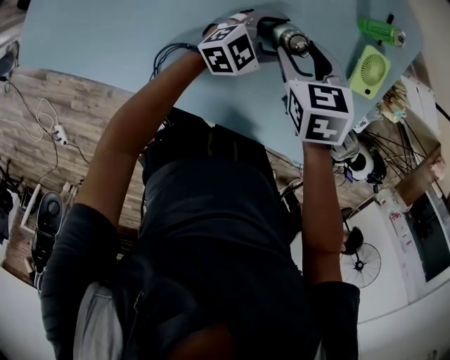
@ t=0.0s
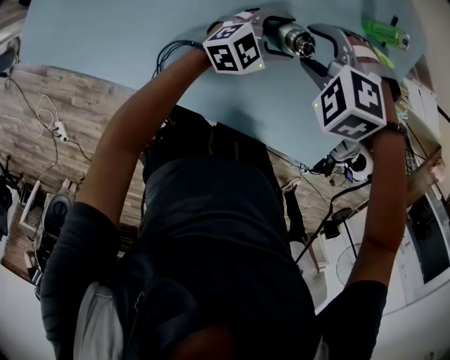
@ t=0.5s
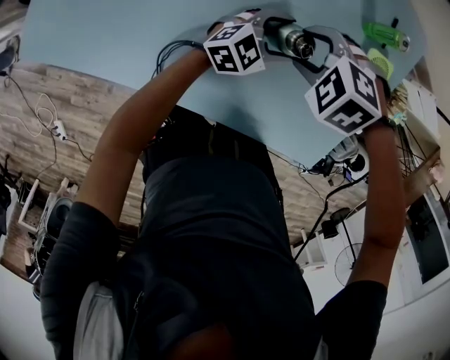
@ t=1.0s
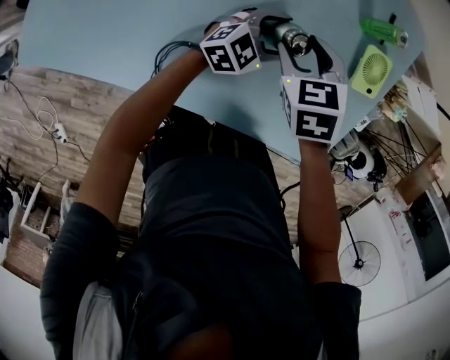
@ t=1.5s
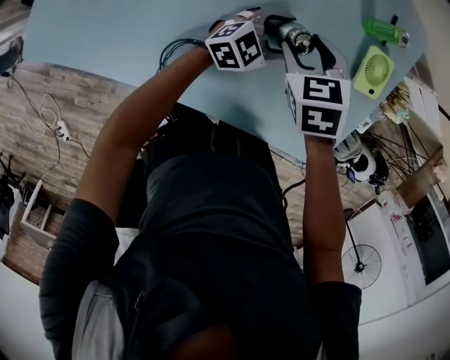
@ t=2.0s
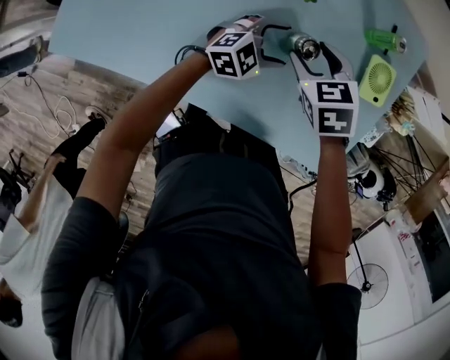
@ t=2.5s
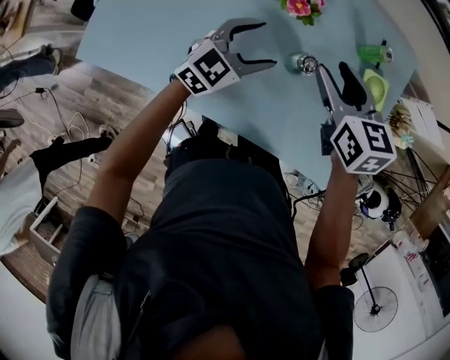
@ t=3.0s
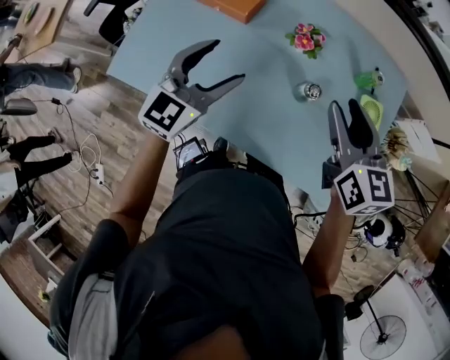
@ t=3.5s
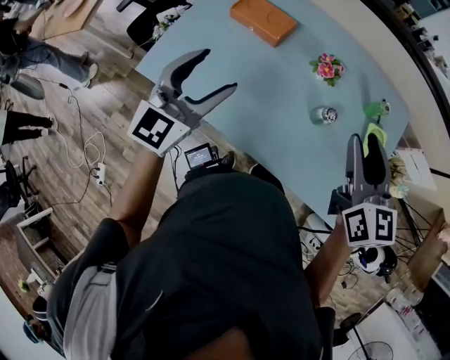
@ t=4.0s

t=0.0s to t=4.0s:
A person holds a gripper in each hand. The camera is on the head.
t=2.0s to t=4.0s: The right gripper moves upward, approximately 35 cm, and angles its fingers upward, by roughly 50 degrees, while the left gripper heads upward, to the left and backward, covering roughly 50 cm, and swivels about 50 degrees.

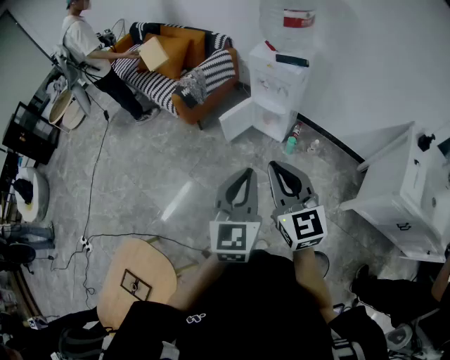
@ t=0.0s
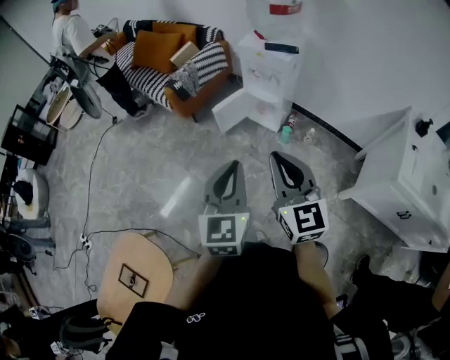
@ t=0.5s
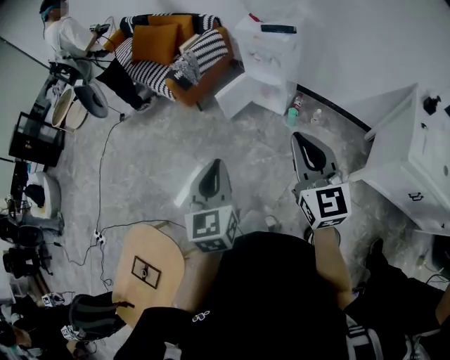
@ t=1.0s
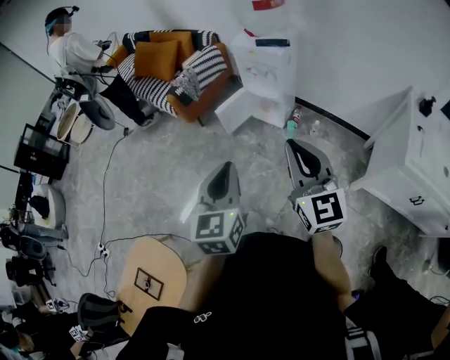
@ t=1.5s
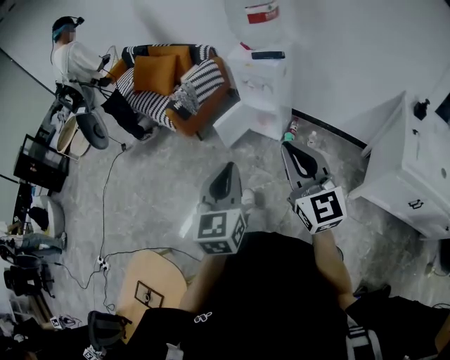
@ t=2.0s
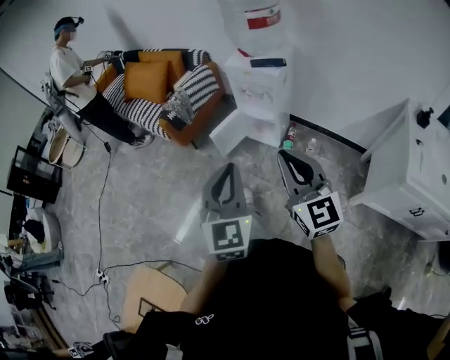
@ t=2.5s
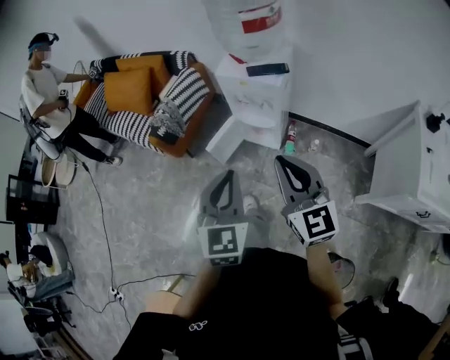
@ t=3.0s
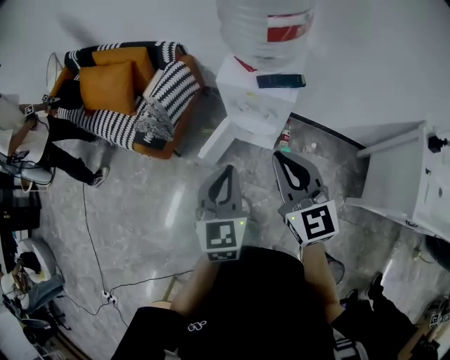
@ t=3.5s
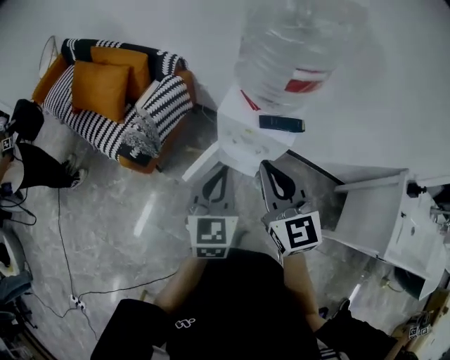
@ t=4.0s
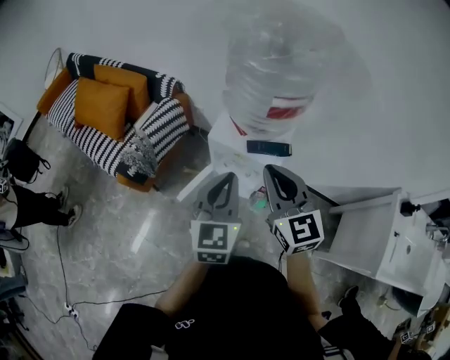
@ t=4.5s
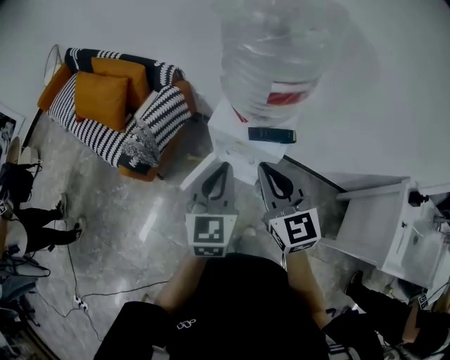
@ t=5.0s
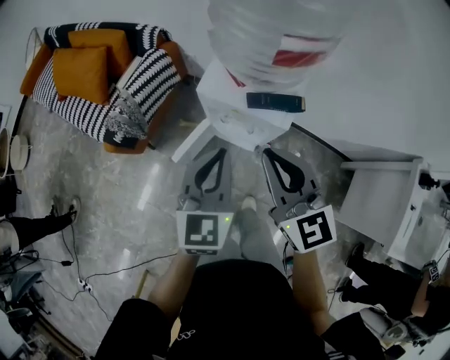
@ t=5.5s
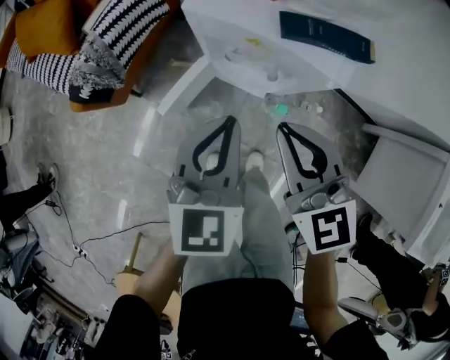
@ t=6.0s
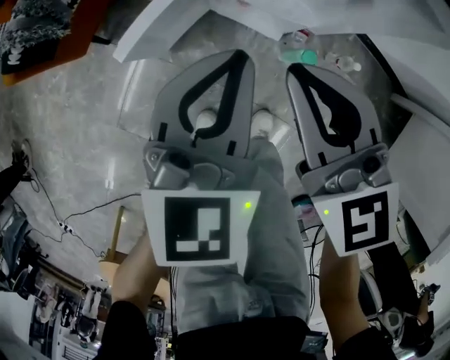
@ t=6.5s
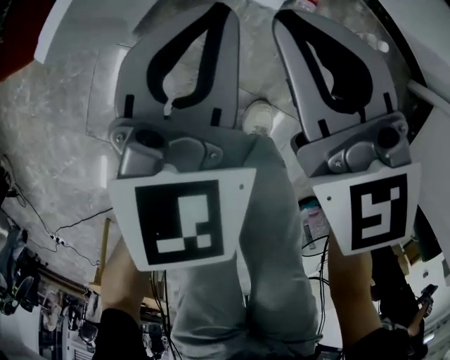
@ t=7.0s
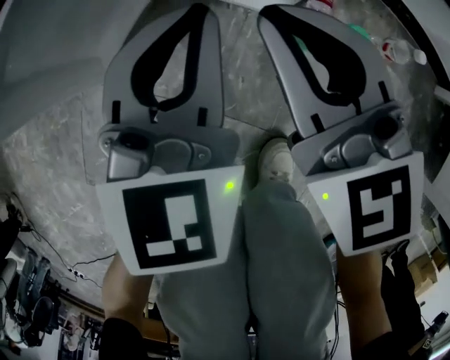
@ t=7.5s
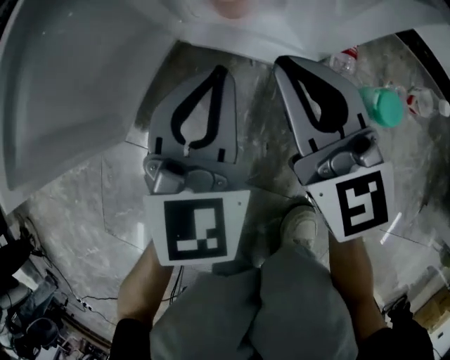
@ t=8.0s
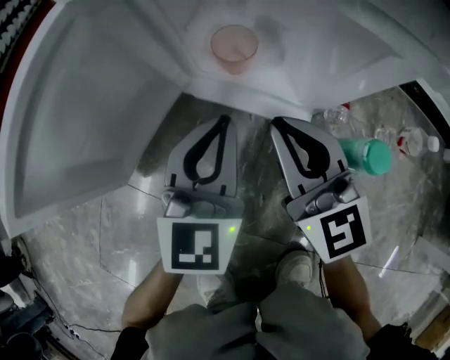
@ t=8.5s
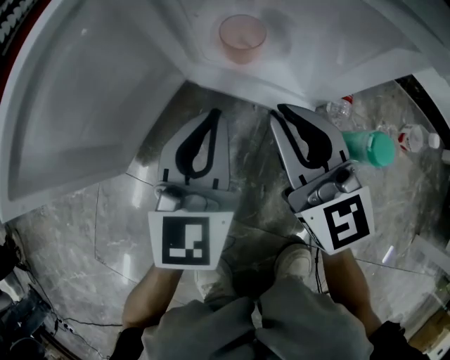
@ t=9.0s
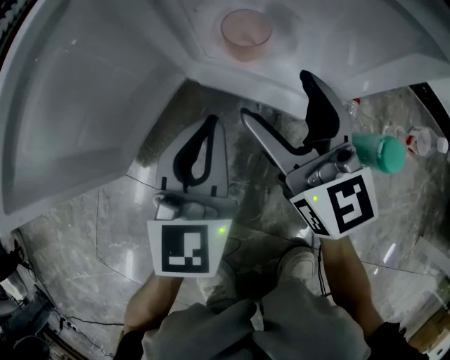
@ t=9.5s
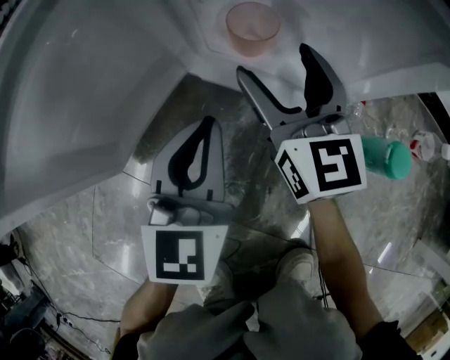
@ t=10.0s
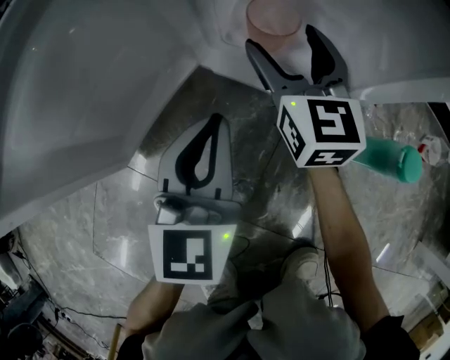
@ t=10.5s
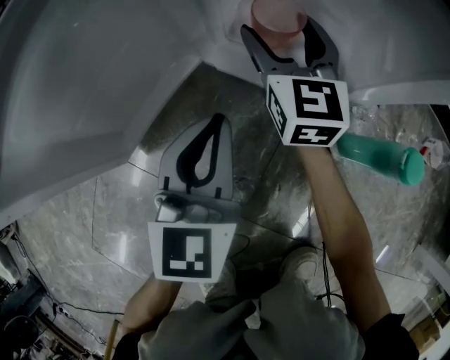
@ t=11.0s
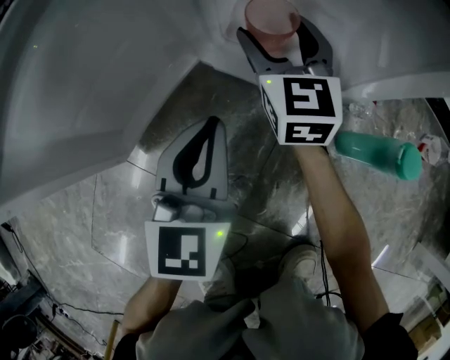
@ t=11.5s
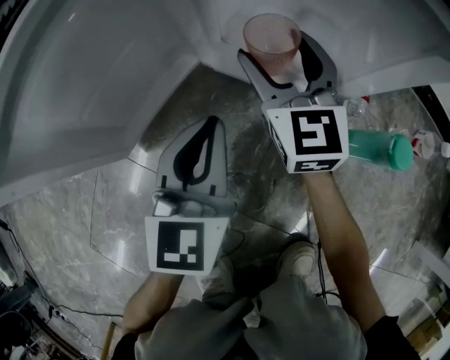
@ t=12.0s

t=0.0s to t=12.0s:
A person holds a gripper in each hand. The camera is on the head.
t=0.0s to t=2.0s: The right gripper shifts about 10 cm to the right.
t=2.0s to t=4.0s: The pair of grippers is taken forward, approximately 50 cm.
t=4.0s to t=6.0s: Both grippers move downward, about 20 cm.
t=6.0s to t=8.0s: The grippers both shift downward by some 60 cm.
t=8.0s to t=10.0s: The left gripper moves approximately 5 cm; the right gripper moves forward and downward, about 10 cm, and opens its fingers.

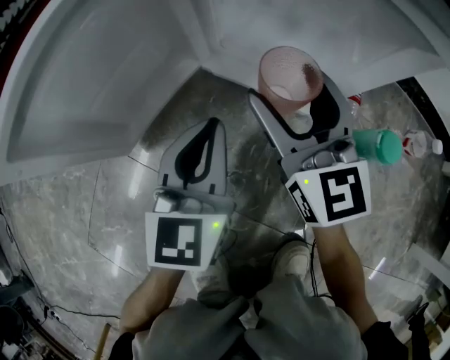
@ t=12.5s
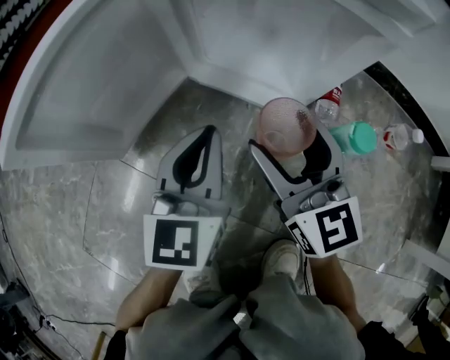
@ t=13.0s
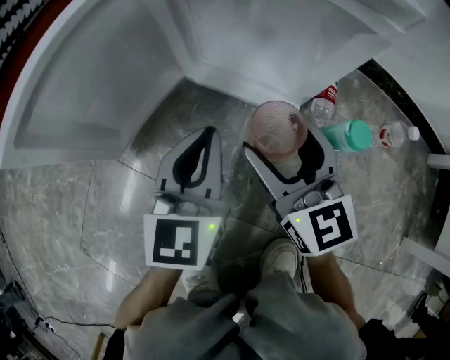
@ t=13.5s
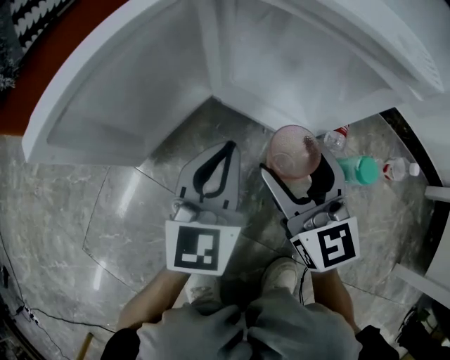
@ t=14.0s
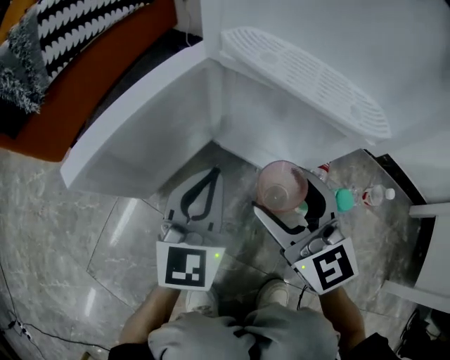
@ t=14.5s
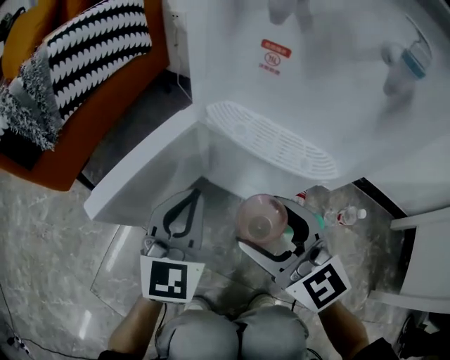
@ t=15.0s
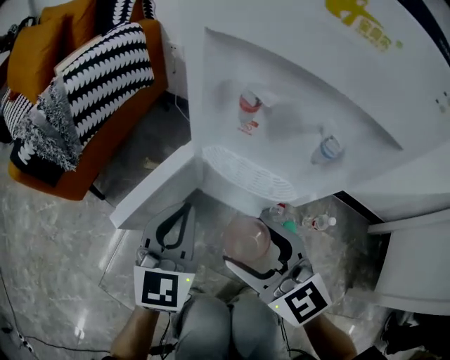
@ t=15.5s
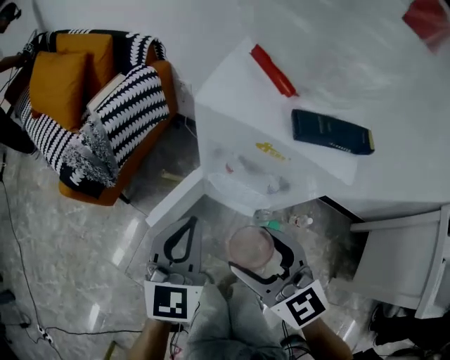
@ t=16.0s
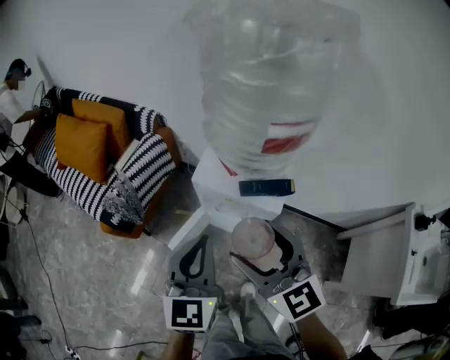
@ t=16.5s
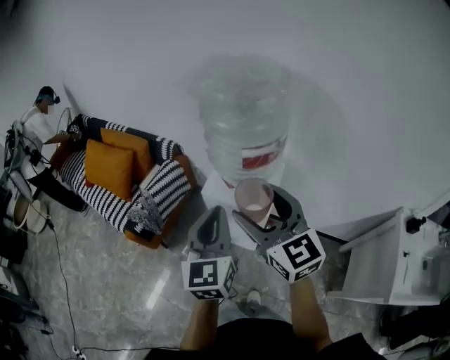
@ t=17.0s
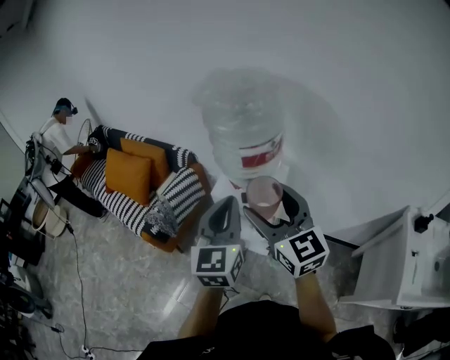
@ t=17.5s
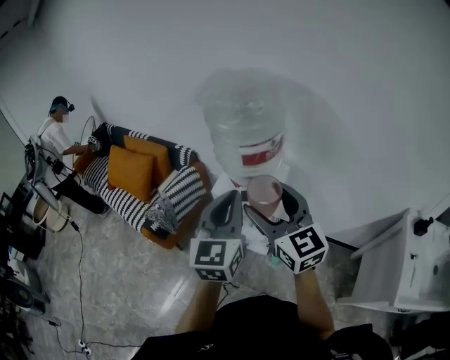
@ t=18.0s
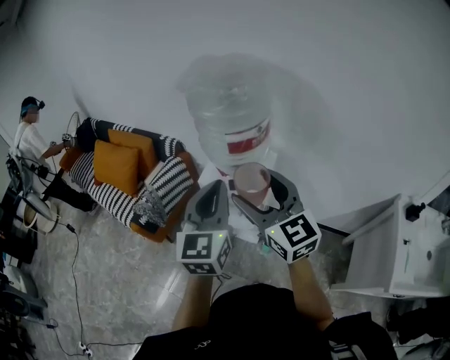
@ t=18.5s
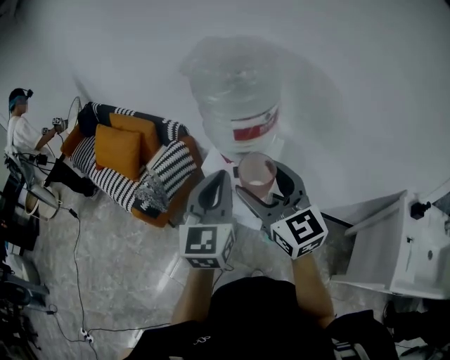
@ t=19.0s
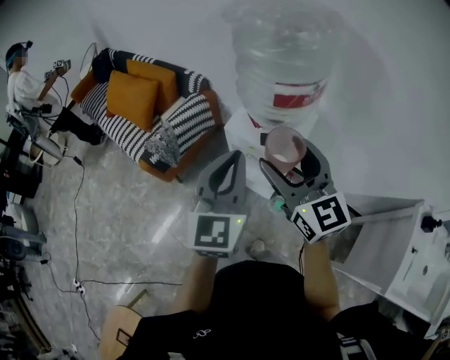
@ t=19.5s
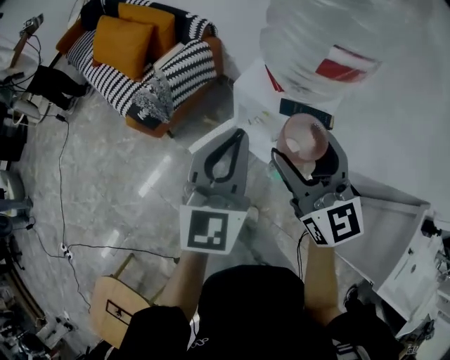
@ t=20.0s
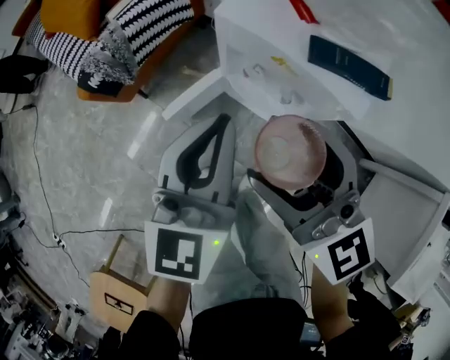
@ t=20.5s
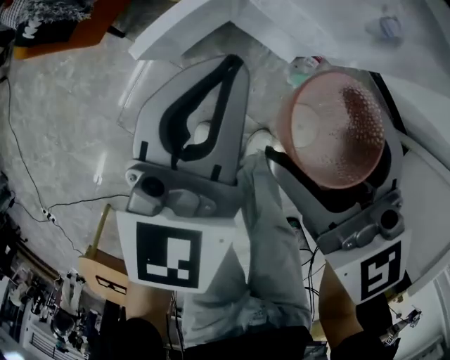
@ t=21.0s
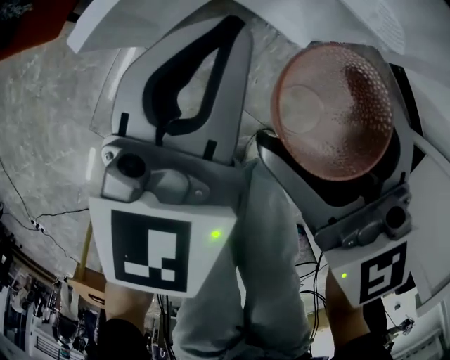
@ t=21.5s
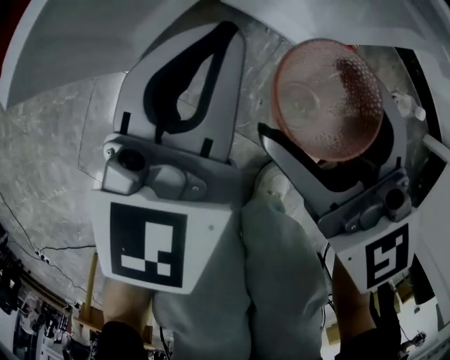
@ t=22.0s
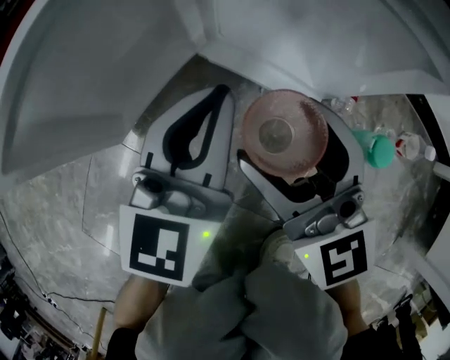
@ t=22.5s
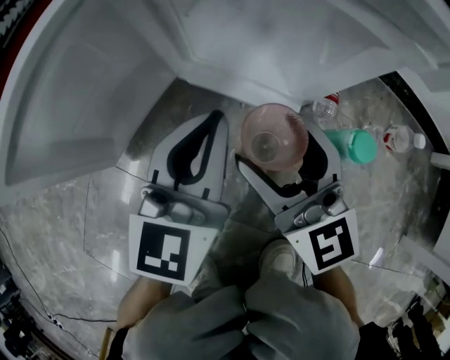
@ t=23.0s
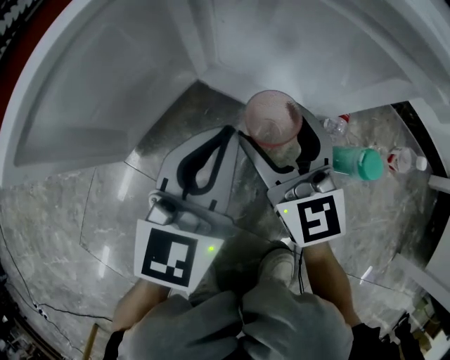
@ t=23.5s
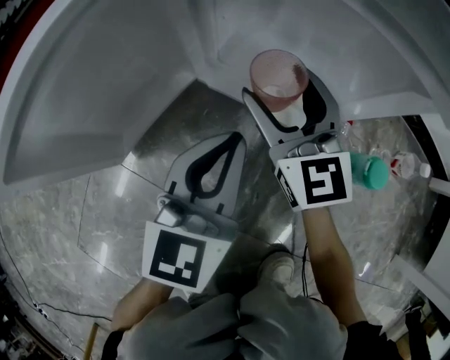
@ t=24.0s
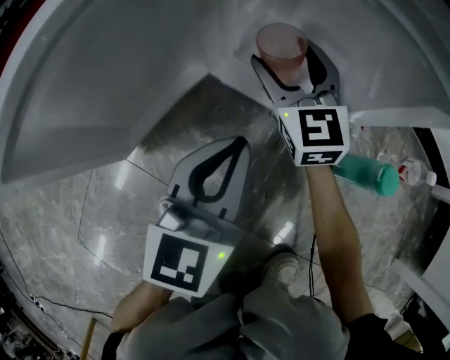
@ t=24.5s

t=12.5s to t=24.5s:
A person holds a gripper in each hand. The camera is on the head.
t=12.5s to t=14.5s: The left gripper goes about 10 cm upward. The right gripper is displaced upward and backward by approximately 10 cm.
t=14.5s to t=16.5s: Both grippers move upward, approximately 60 cm.
t=16.5s to t=18.5s: Both grippers move upward and to the right, roughly 20 cm.
t=18.5s to t=20.5s: Both grippers travel together downward, some 30 cm.
t=20.5s to t=22.5s: The two grippers go roughly 60 cm downward.
t=22.5s to t=24.5s: The right gripper moves forward and downward, about 20 cm, while the left gripper heads downward, covering approximately 5 cm.
